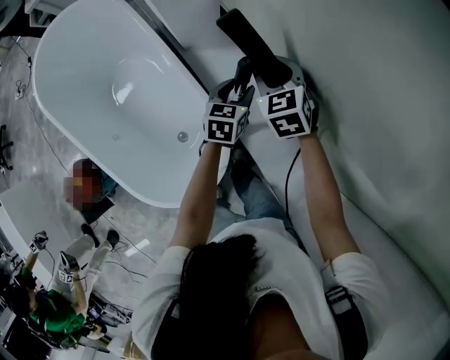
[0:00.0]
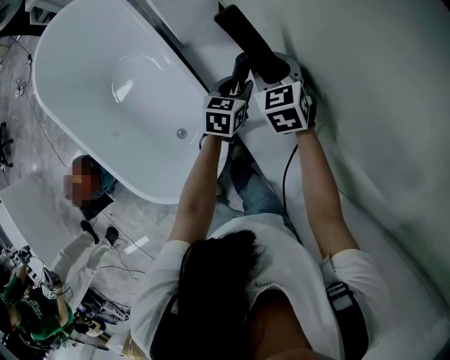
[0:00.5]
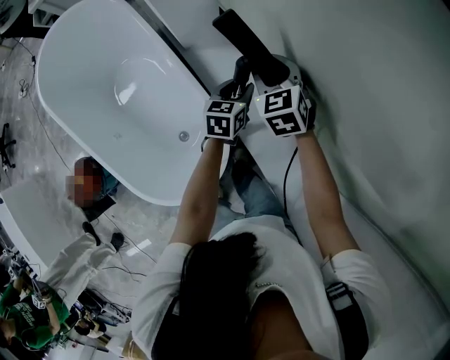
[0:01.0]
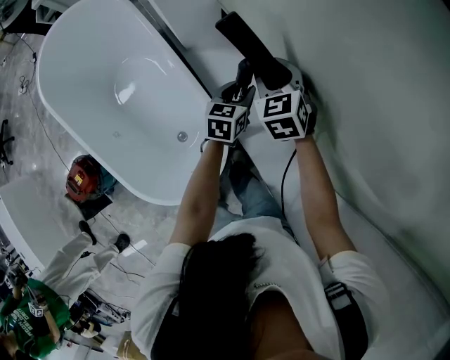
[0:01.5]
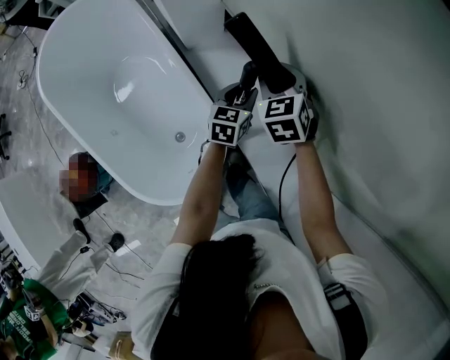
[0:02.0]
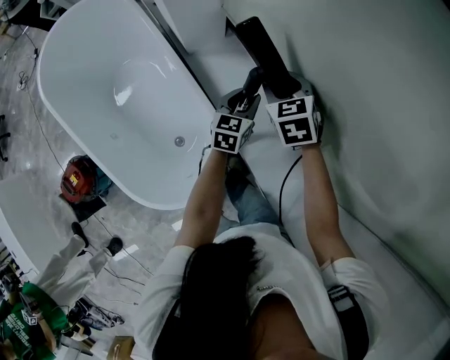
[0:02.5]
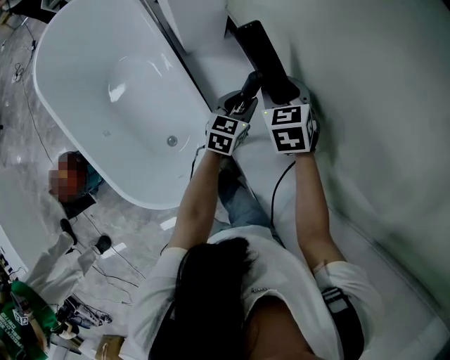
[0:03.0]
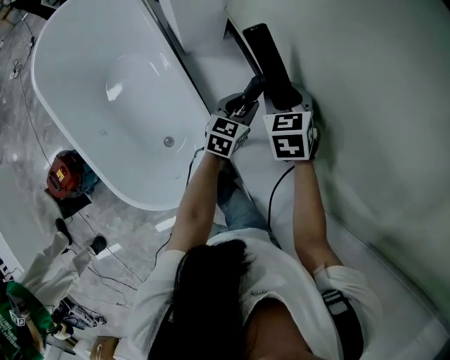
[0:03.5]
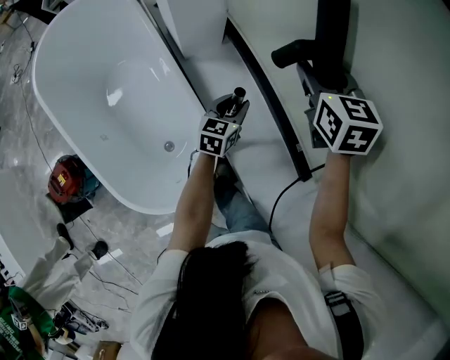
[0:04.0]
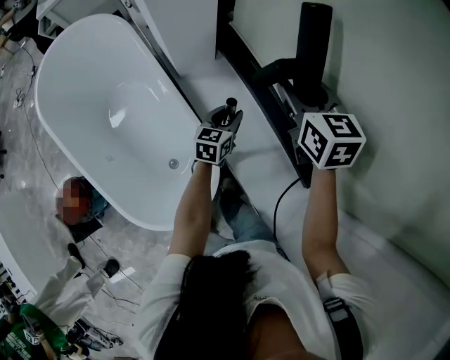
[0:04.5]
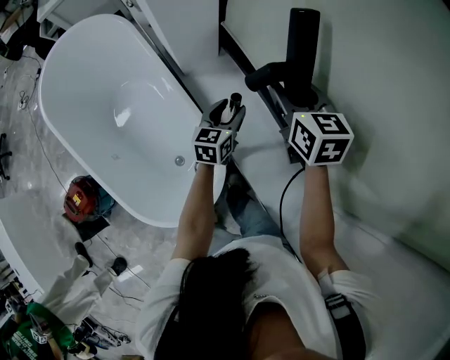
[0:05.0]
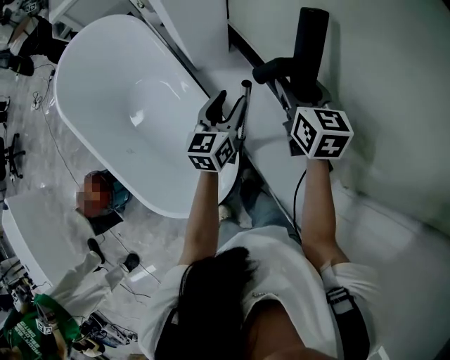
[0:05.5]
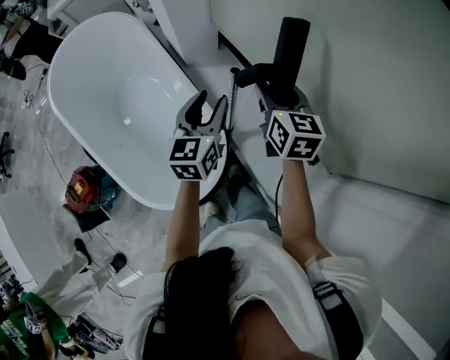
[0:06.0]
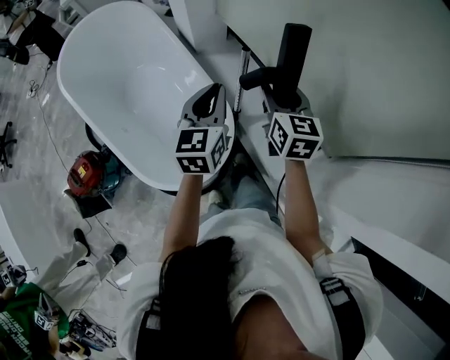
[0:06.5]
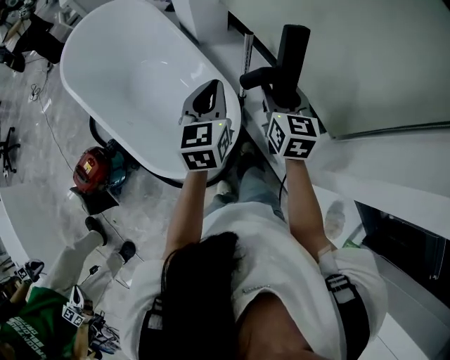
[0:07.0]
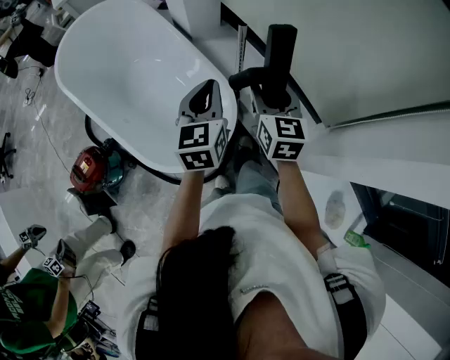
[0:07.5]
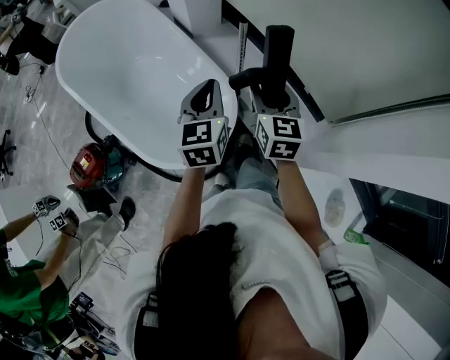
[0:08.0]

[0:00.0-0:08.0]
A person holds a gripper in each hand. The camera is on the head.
0:00.0 to 0:02.0: The grippers move only a little.
0:02.0 to 0:04.0: The right gripper shifts about 15 cm upward, and swivels approximately 20 degrees.
0:04.0 to 0:06.0: The left gripper travels upward, backward and to the left by approximately 25 cm; the right gripper is displaced backward by about 15 cm.
0:06.0 to 0:08.0: Both grippers travel together backward, about 20 cm. The left gripper closes its fingers.

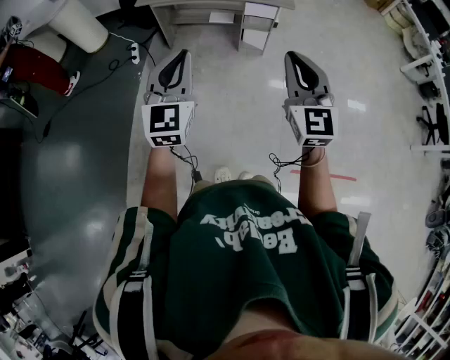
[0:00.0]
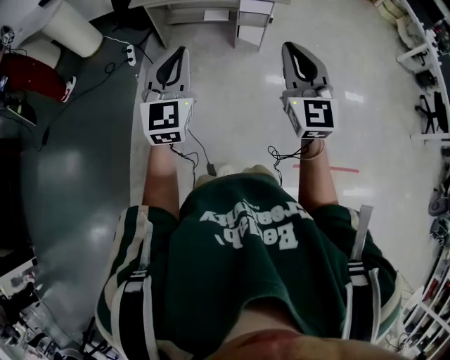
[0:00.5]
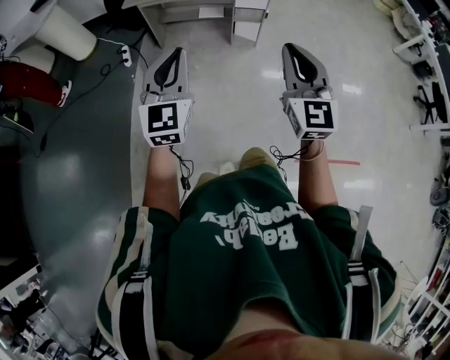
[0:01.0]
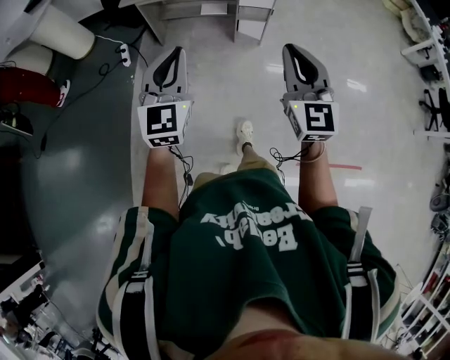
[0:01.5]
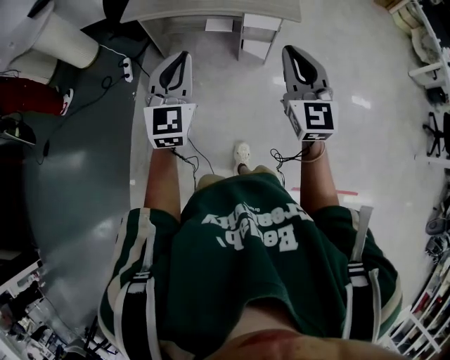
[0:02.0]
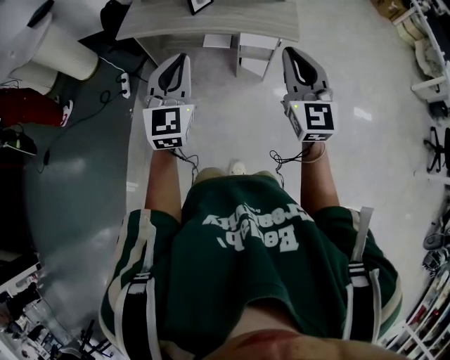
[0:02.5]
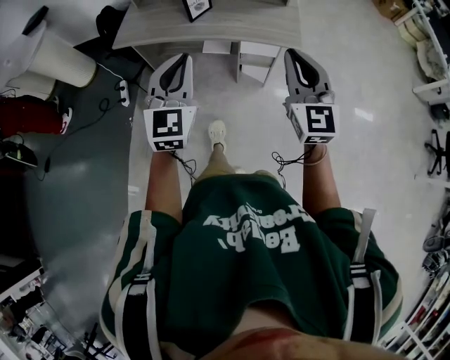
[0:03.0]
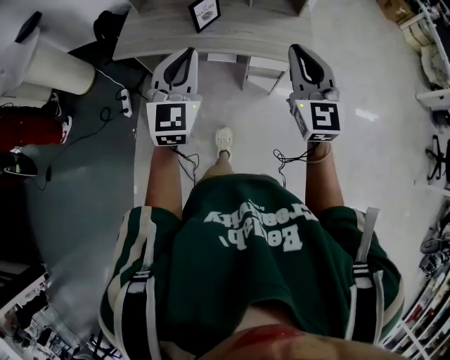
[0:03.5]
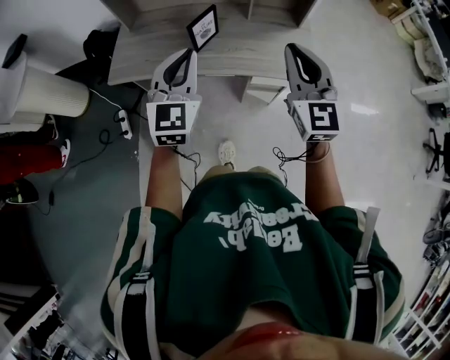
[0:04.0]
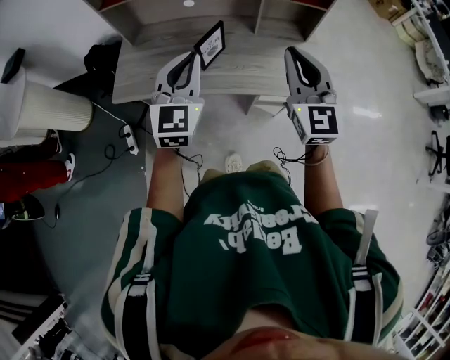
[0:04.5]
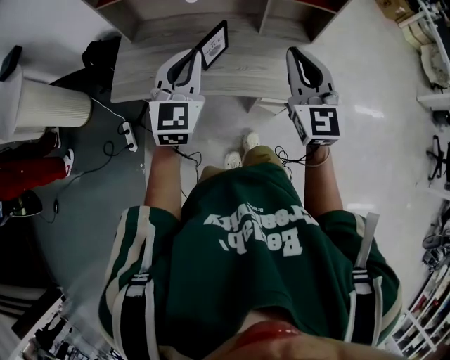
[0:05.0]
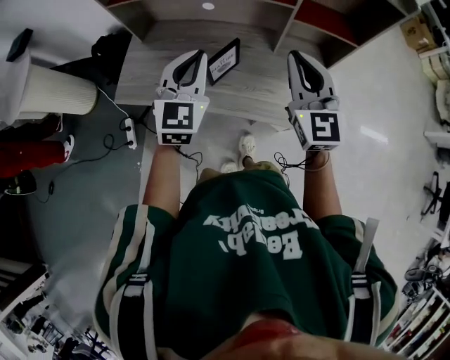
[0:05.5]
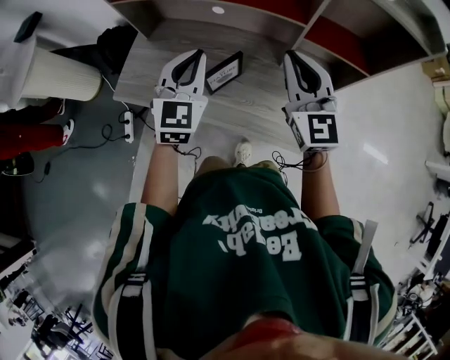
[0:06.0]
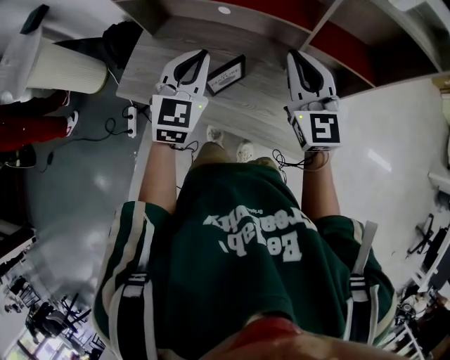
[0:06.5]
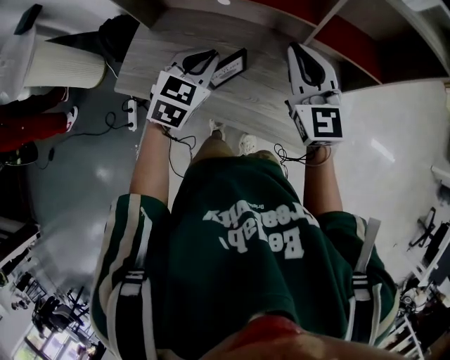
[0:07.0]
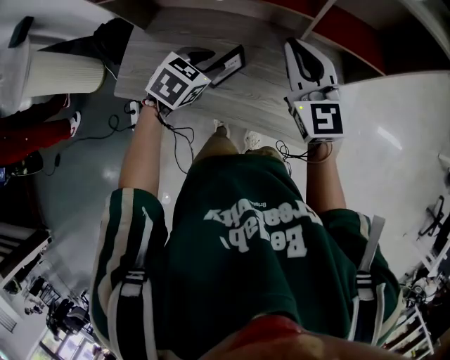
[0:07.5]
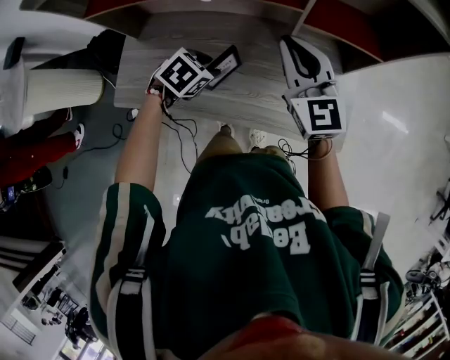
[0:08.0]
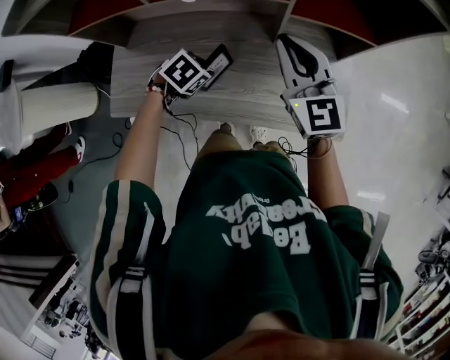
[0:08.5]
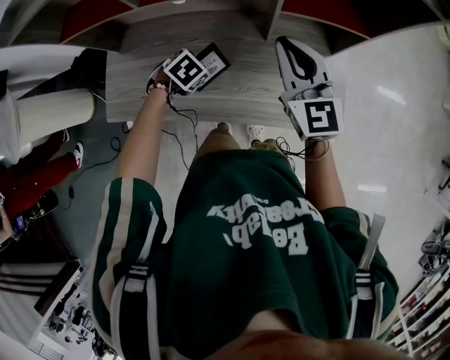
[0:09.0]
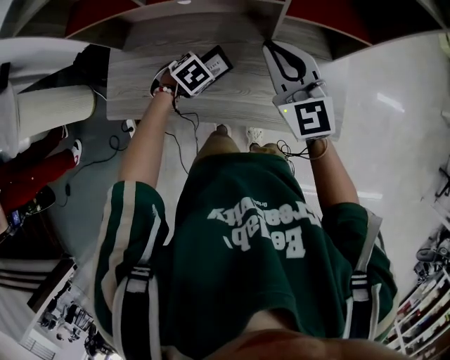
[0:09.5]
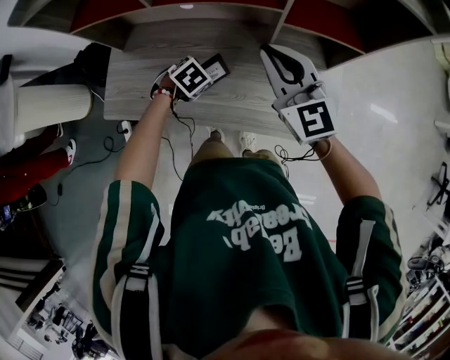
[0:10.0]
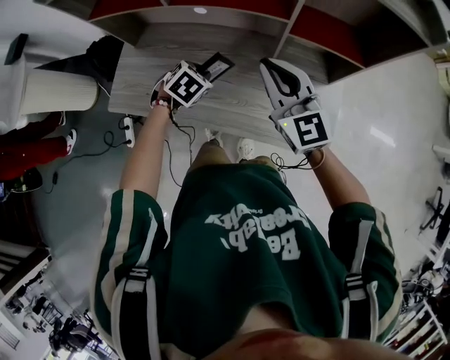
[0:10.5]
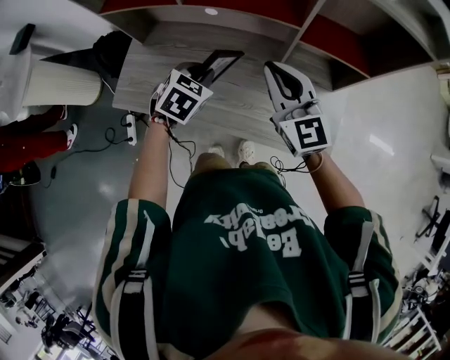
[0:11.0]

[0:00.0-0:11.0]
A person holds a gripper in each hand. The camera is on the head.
0:00.0 to 0:02.0: Both grippers move forward, some 25 cm.
0:02.0 to 0:03.5: The two grippers go some 35 cm forward.
0:03.5 to 0:05.5: Both grippers move forward, about 35 cm.
0:05.5 to 0:07.5: The left gripper heads downward and forward, covering roughly 20 cm, tips its fingers downward by about 40 degrees, and opens; the right gripper heads forward, covering some 15 cm.
0:07.5 to 0:09.0: The left gripper moves downward, about 15 cm, turns by approximately 30 degrees, and closes.
0:09.0 to 0:11.0: The right gripper shifts by some 10 cm; the left gripper is displaced upward by about 15 cm, and swivels some 30 degrees.

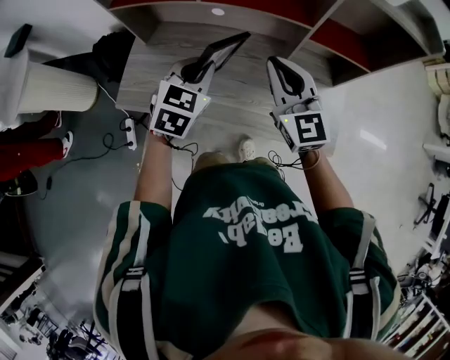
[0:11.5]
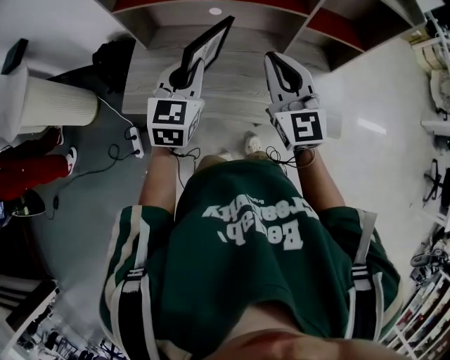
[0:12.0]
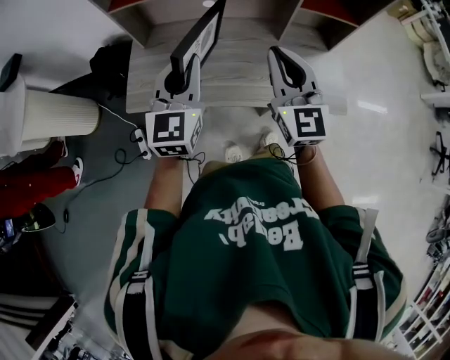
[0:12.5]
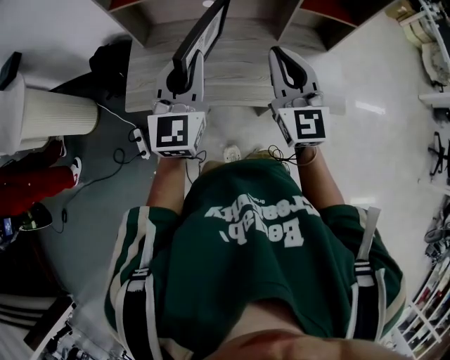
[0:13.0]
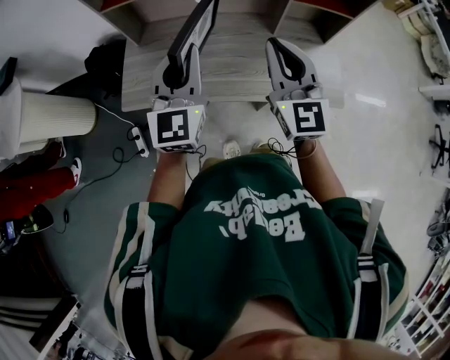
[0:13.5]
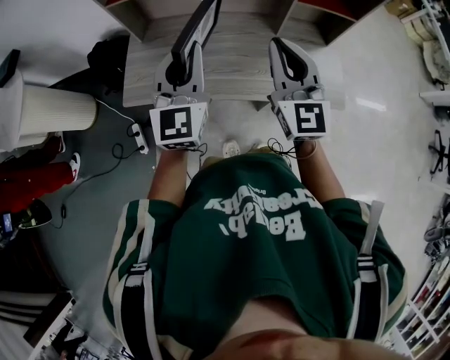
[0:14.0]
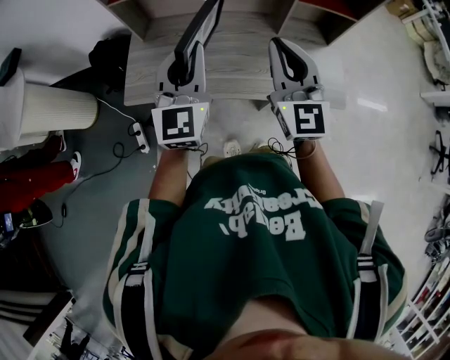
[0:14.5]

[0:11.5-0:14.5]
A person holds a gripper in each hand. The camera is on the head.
0:11.5 to 0:13.0: The left gripper shifts some 20 cm backward, upward and to the left, and points its fingers roughly 30 degrees further upward. The right gripper moves backward and to the left, approximately 15 cm.
0:13.0 to 0:14.5: The grippers make only small movements.

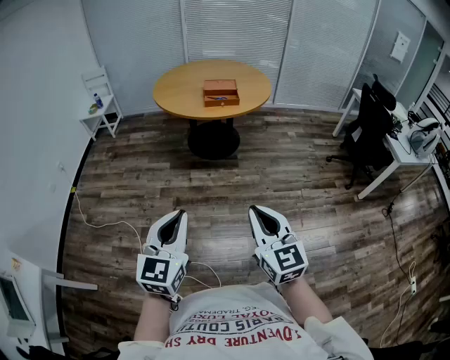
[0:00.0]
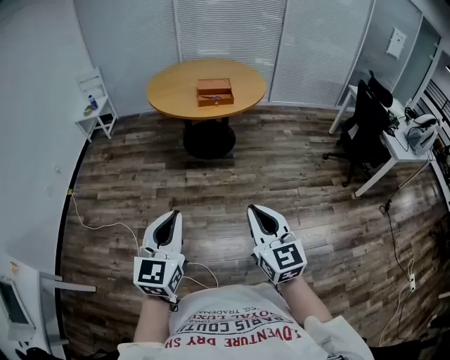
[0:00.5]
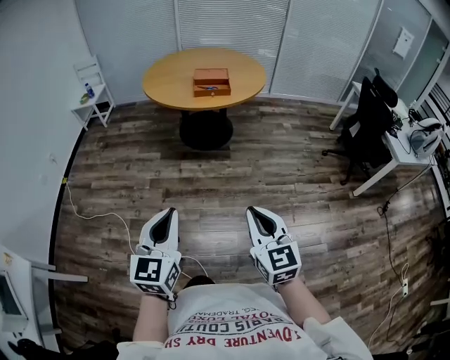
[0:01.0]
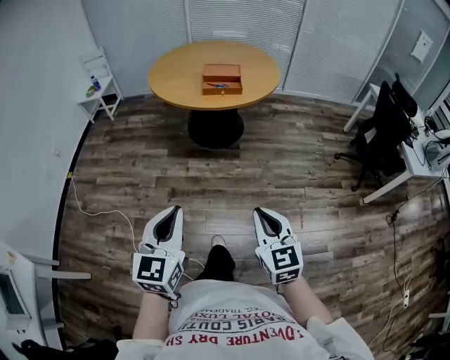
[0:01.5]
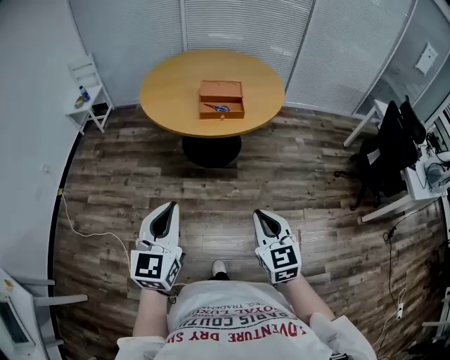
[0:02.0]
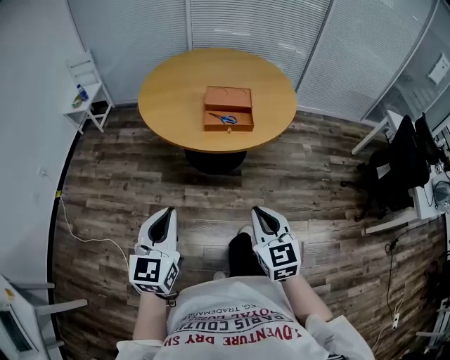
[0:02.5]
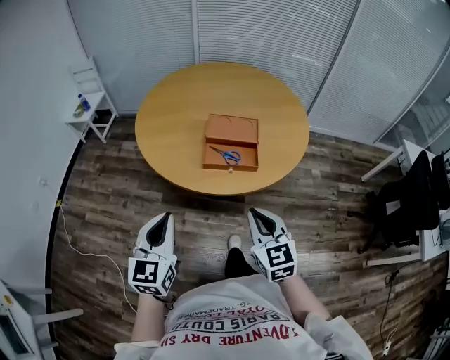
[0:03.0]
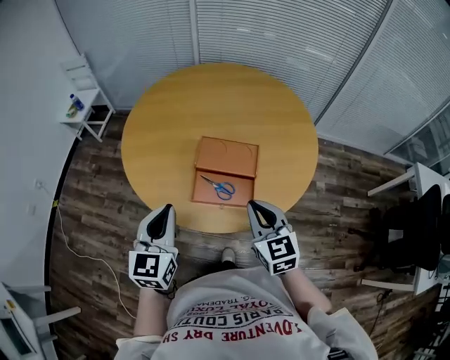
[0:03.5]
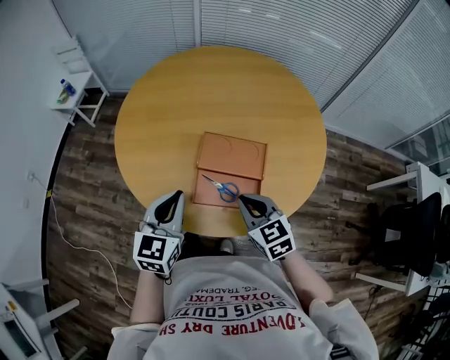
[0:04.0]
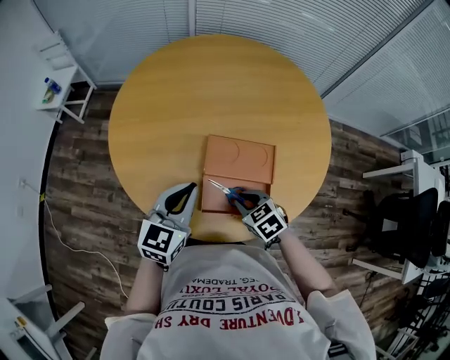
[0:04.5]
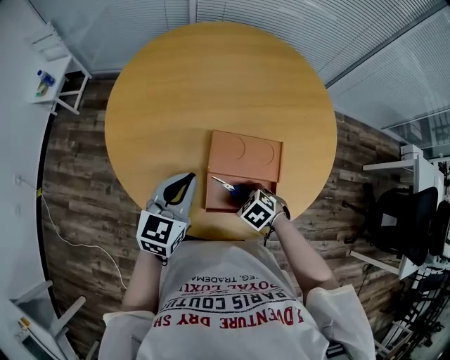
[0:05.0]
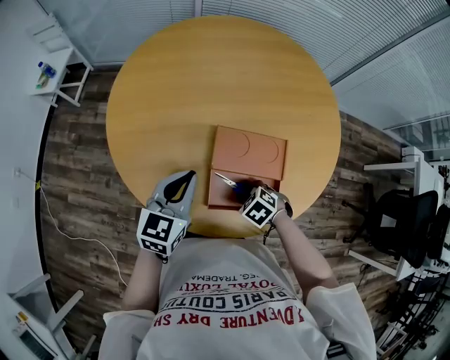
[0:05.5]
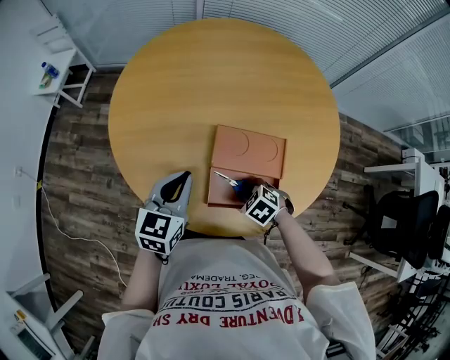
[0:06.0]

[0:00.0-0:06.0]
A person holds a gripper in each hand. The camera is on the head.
0:00.0 to 0:02.0: The grippers both shift forward by roughly 35 cm.
0:02.0 to 0:04.0: Both grippers are carried forward, roughly 60 cm. The right gripper changes its angle by some 30 degrees.
0:04.0 to 0:06.0: The right gripper heads downward, covering some 20 cm, and tilts its fingers about 40 degrees downward, while the left gripper ends up about 10 cm from where it was.
